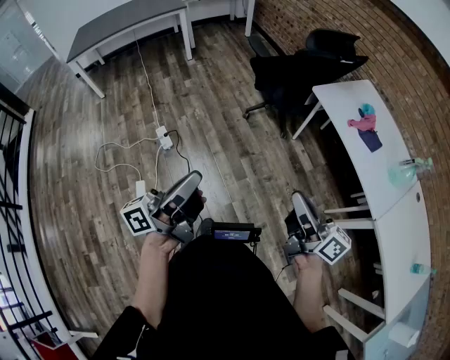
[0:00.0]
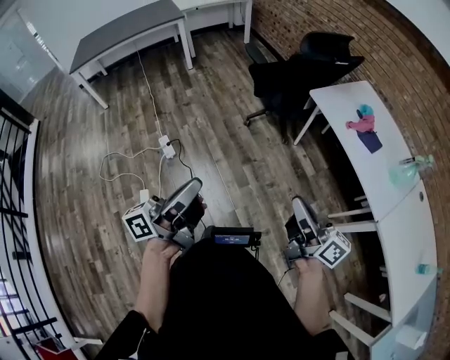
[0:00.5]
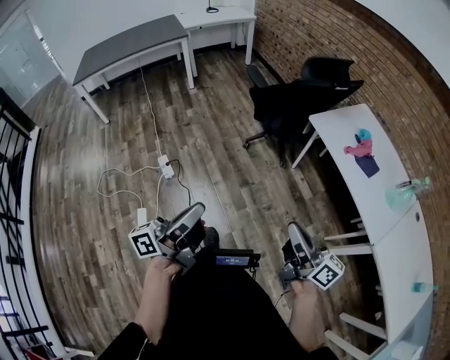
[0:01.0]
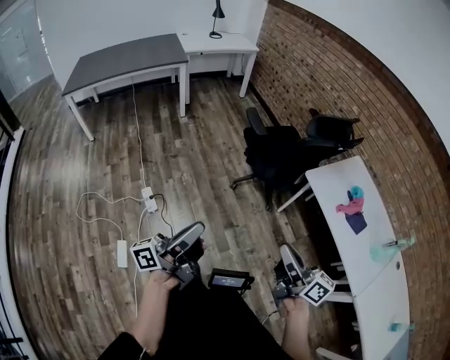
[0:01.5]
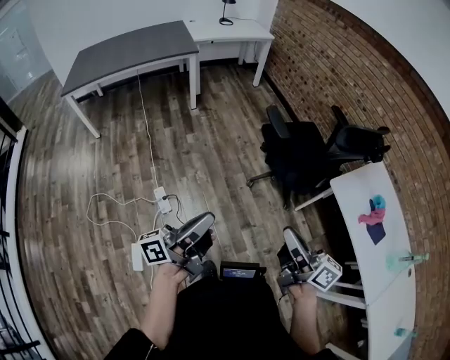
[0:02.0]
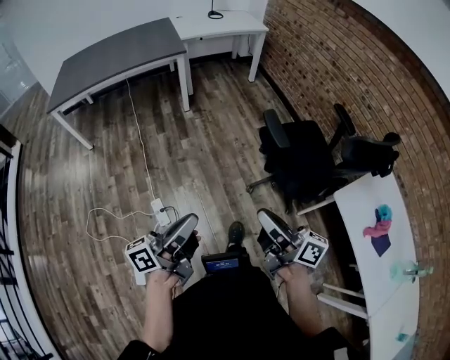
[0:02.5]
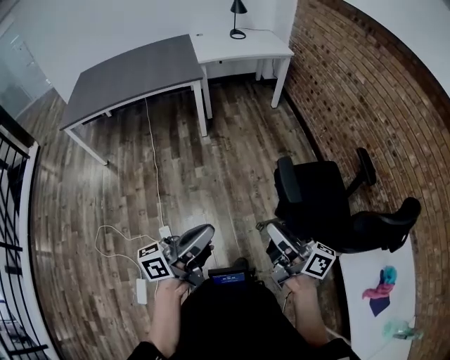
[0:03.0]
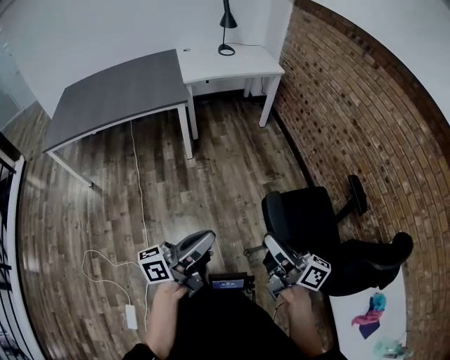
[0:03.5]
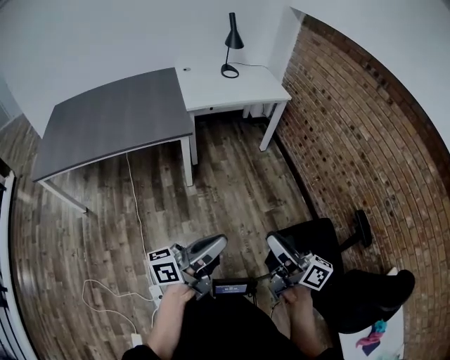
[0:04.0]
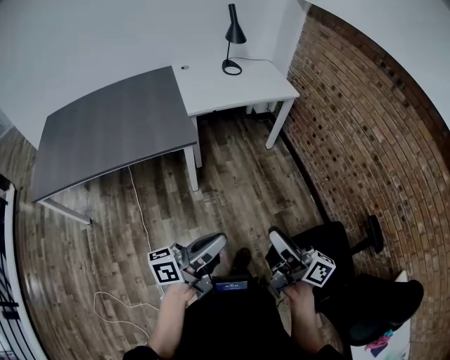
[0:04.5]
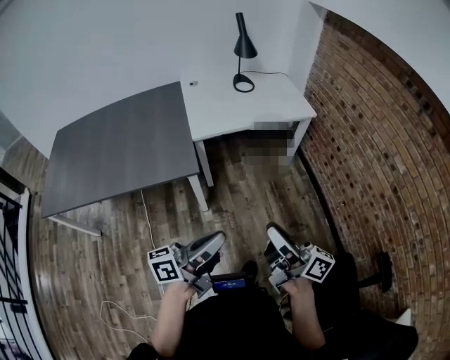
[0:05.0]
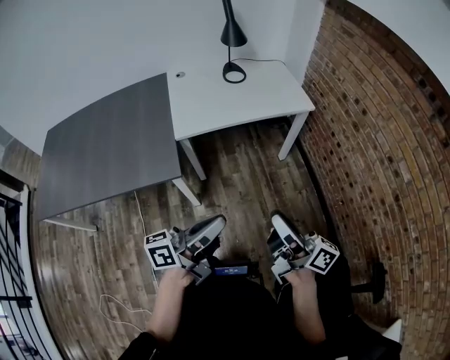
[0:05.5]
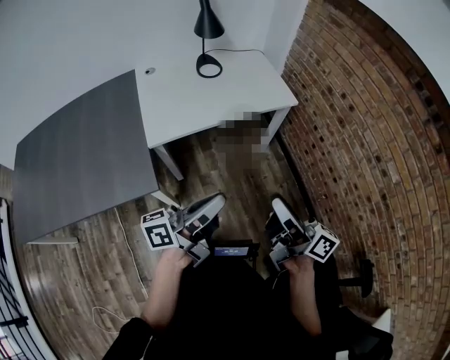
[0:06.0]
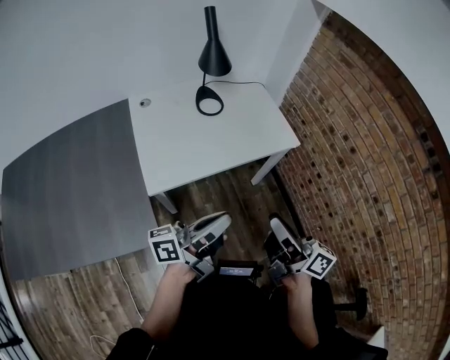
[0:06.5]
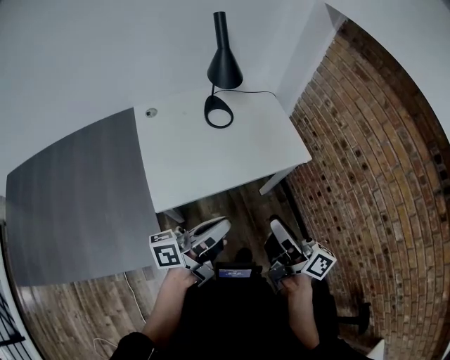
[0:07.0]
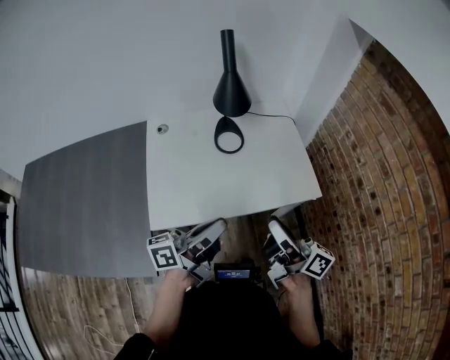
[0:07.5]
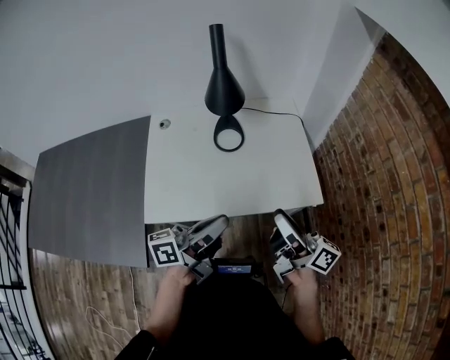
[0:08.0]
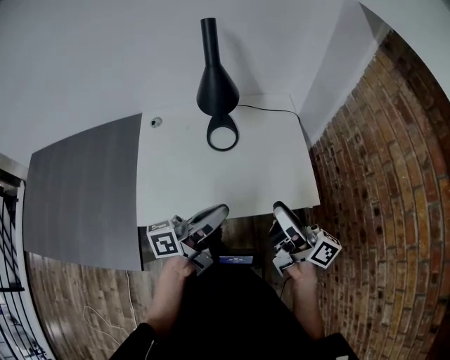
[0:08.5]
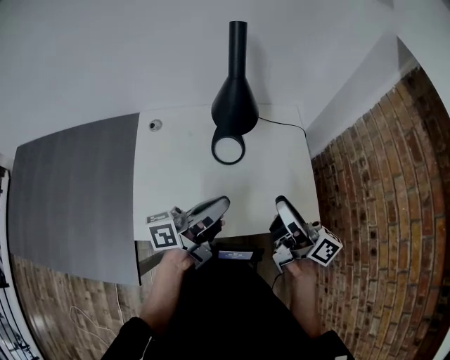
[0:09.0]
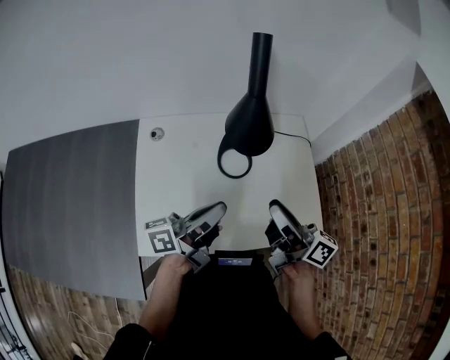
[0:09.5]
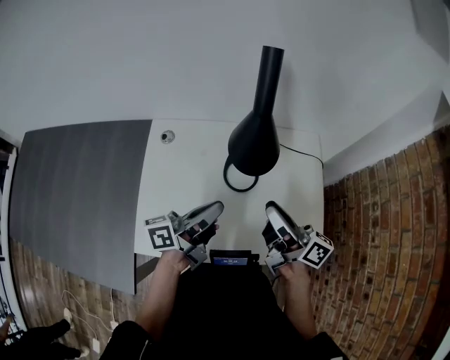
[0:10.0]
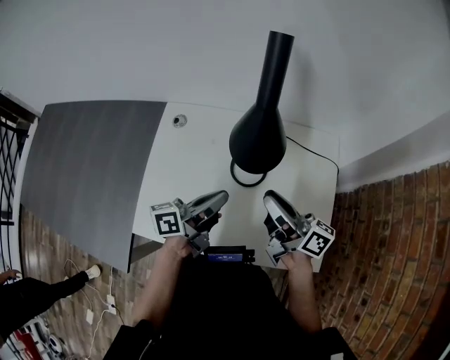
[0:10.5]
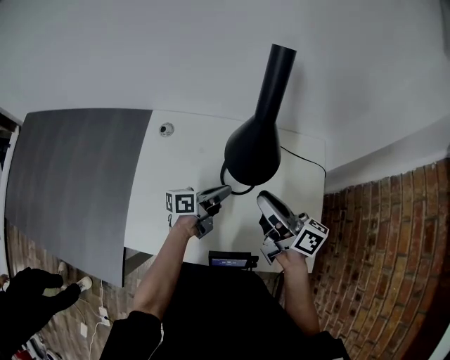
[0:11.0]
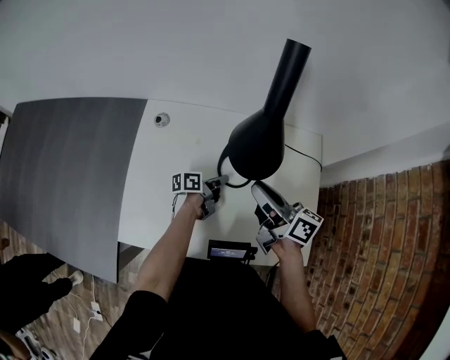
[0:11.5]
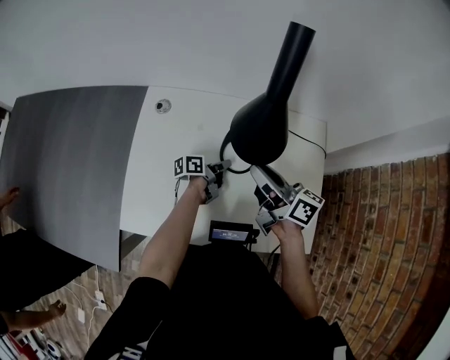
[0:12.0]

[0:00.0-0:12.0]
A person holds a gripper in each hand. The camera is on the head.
0:00.0 to 0:02.0: The right gripper moves forward and to the left, approximately 30 cm; the left gripper travels forward by some 30 cm.
0:02.0 to 0:04.0: Both grippers are carried forward, about 60 cm.
0:04.0 to 0:06.0: The pair of grippers is taken forward, some 50 cm.
0:06.0 to 0:08.0: The grippers both shift forward by some 35 cm.
0:08.0 to 0:10.0: The two grippers go some 25 cm forward and to the left.
0:10.0 to 0:12.0: The left gripper travels downward and forward by roughly 30 cm, and changes its angle by about 30 degrees. Meanwhile the right gripper goes roughly 10 cm forward and downward.

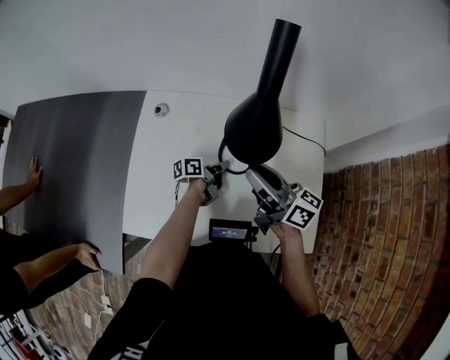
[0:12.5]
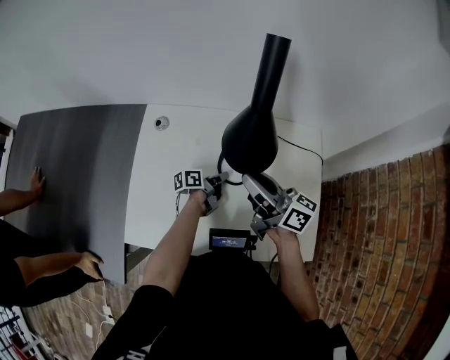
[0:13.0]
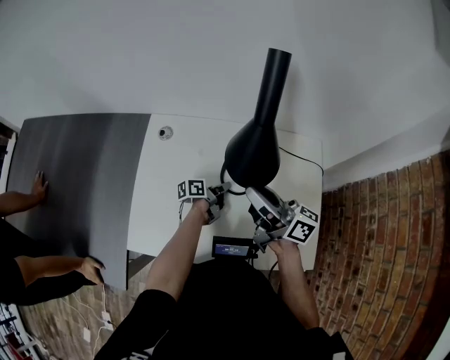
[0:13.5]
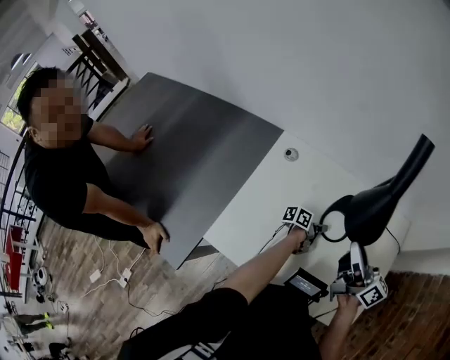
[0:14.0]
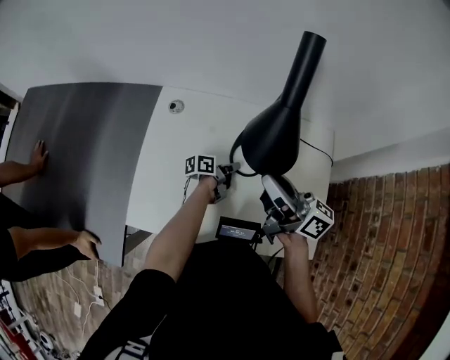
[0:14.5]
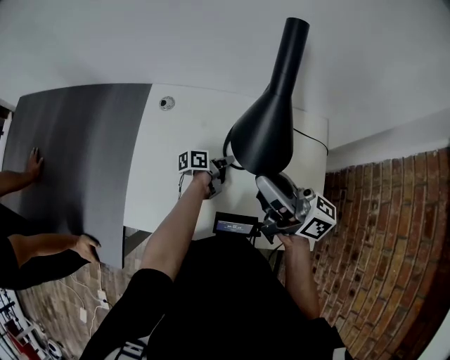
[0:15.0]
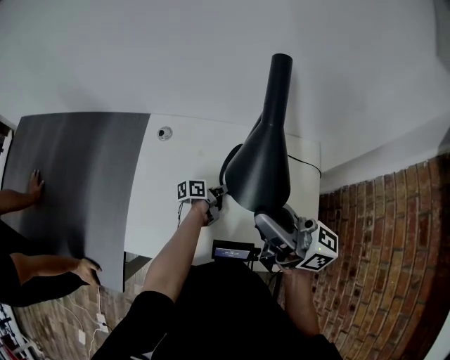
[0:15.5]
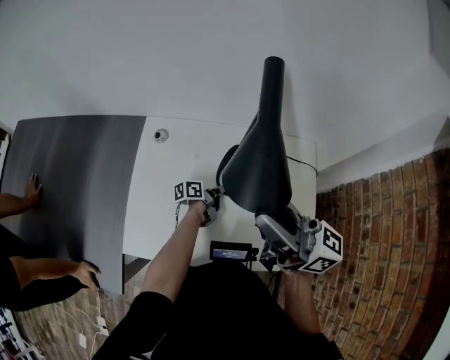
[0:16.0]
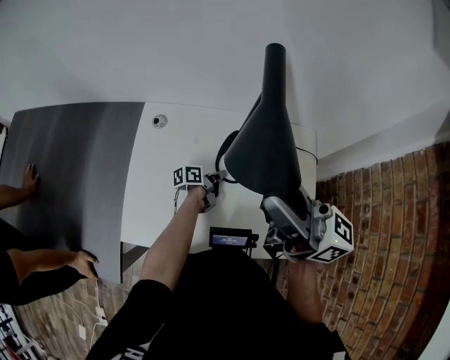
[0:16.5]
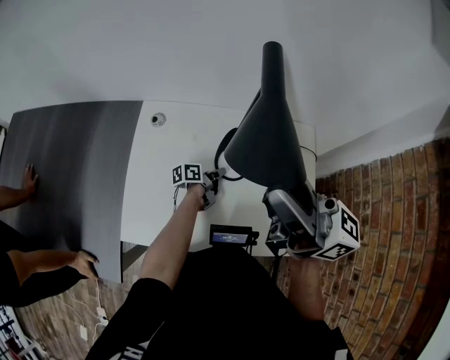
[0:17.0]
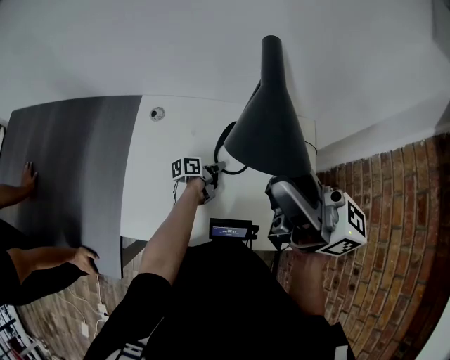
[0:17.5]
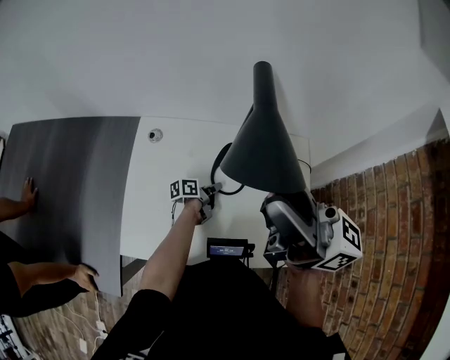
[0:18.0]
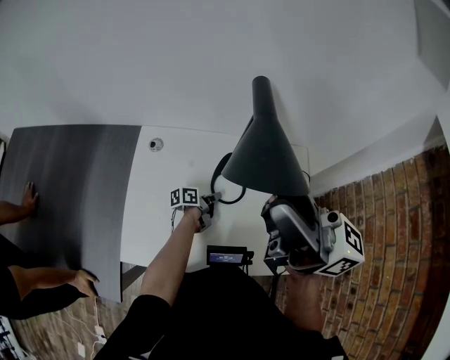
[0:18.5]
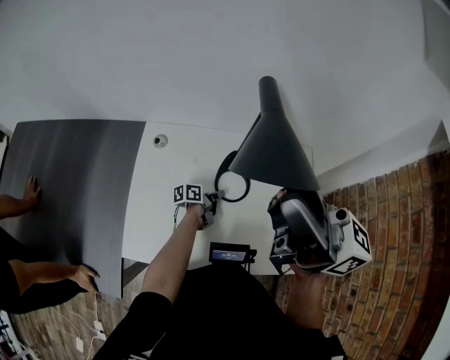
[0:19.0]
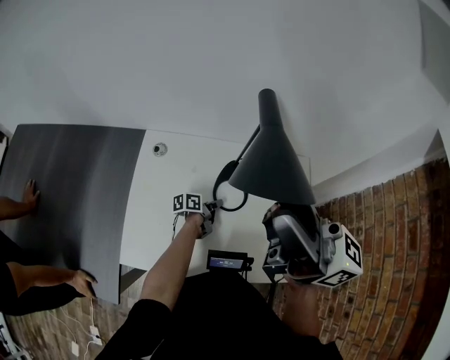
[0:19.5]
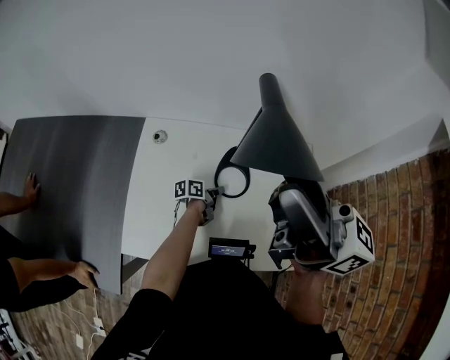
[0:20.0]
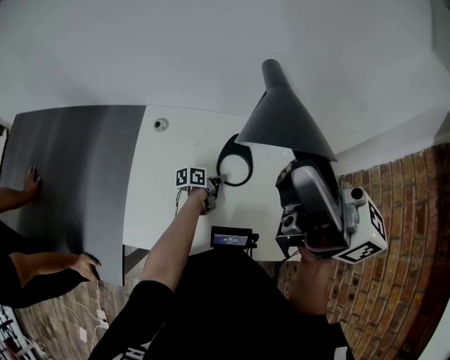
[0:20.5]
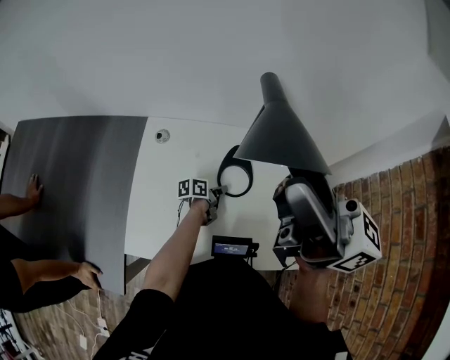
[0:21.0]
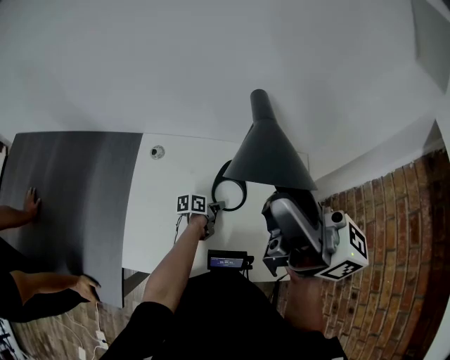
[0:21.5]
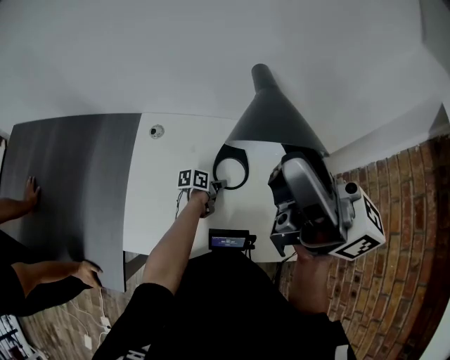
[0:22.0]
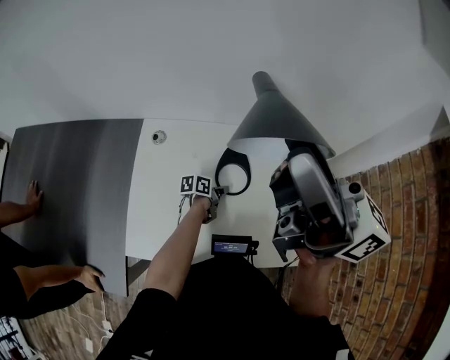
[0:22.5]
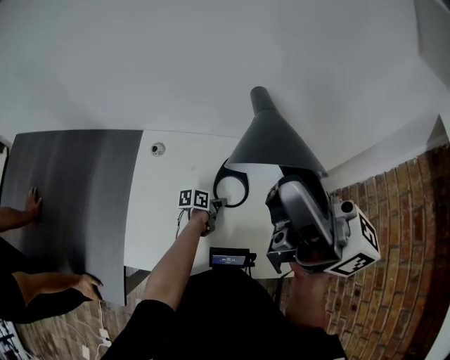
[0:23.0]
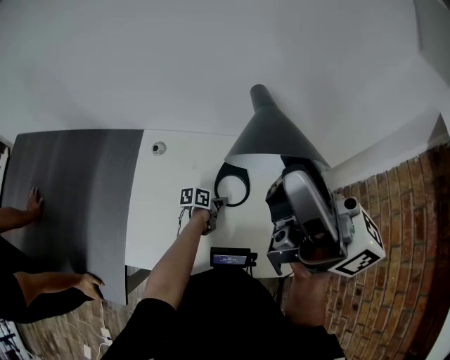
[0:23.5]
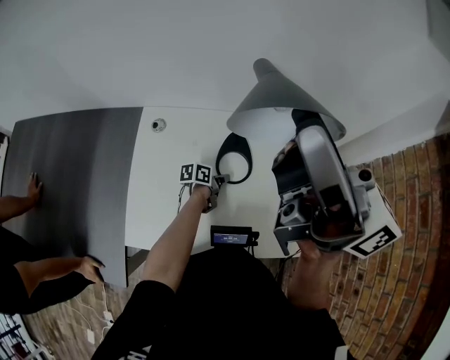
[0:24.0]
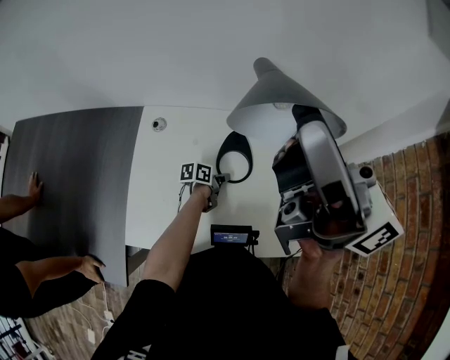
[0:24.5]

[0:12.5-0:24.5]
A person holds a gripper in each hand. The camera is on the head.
0:12.5 to 0:14.5: The grippers make only small movements.
0:14.5 to 0:16.5: The right gripper heads upward, covering approximately 15 cm.
0:16.5 to 0:18.5: The right gripper is displaced upward by roughly 5 cm.
0:18.5 to 0:22.5: There are only small adjustments of the grippers.
0:22.5 to 0:24.5: There are only small adjustments of the grippers.

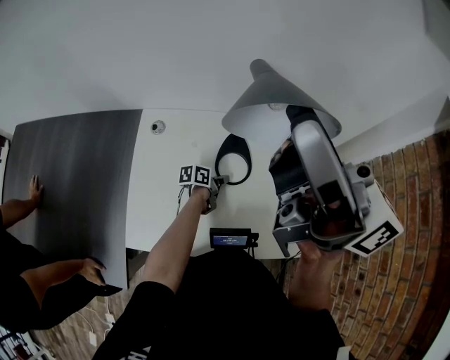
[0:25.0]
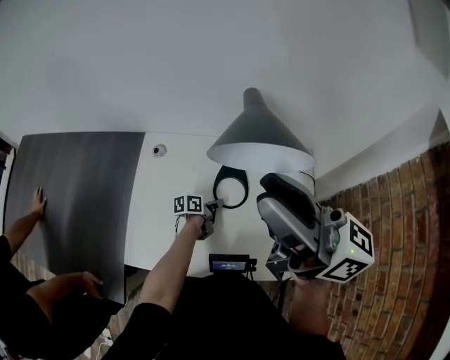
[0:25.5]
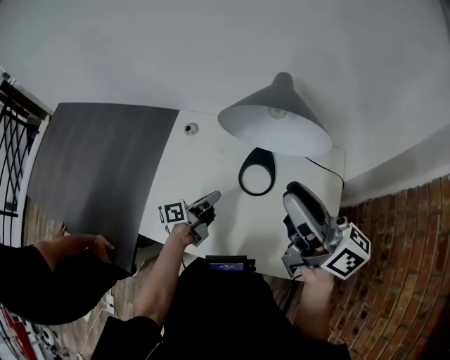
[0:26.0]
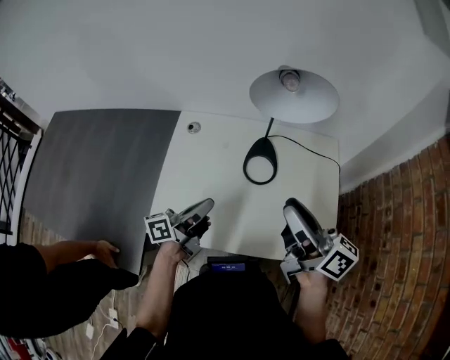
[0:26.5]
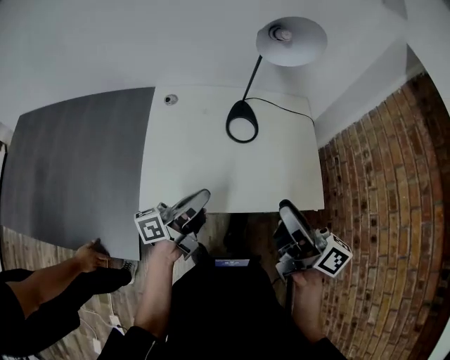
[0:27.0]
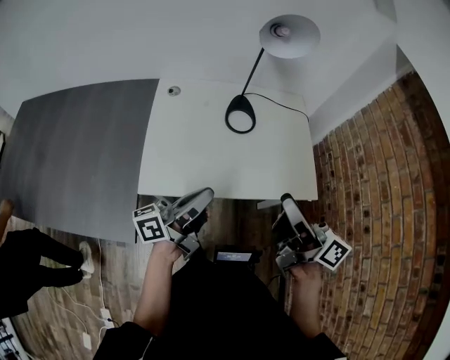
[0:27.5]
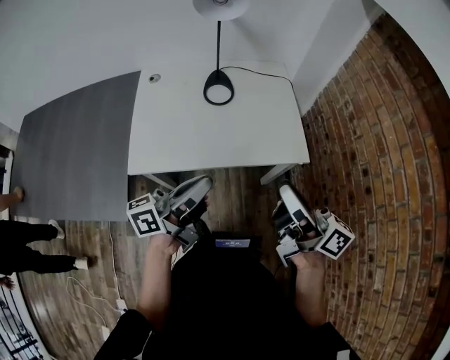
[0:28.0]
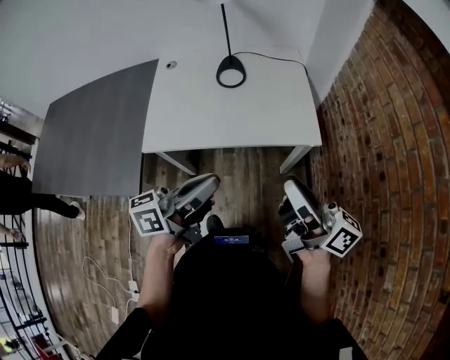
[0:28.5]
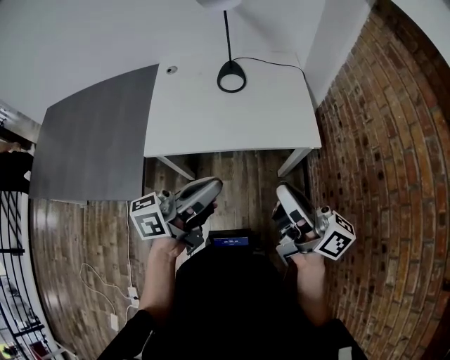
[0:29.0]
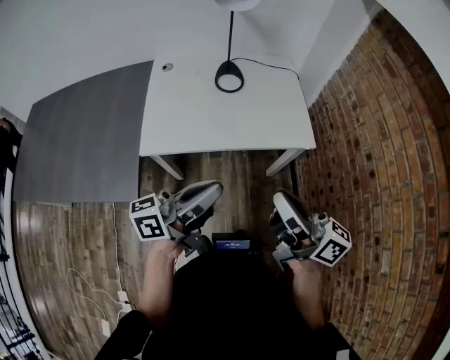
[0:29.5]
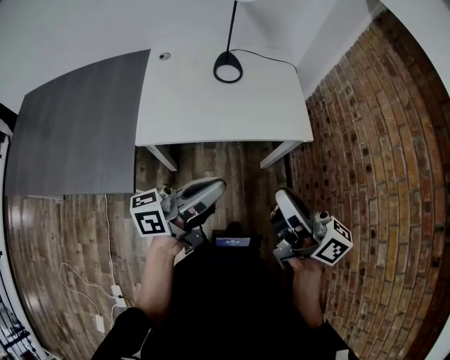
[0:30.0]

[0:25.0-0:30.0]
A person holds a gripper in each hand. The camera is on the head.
0:25.0 to 0:27.5: The right gripper is displaced backward and downward by some 35 cm, and rotates some 30 degrees; the left gripper moves backward and upward, approximately 40 cm, and tips its fingers upward by some 50 degrees.
0:27.5 to 0:30.0: The right gripper shifts some 20 cm backward, and closes, while the left gripper travels backward and to the right by approximately 20 cm.
